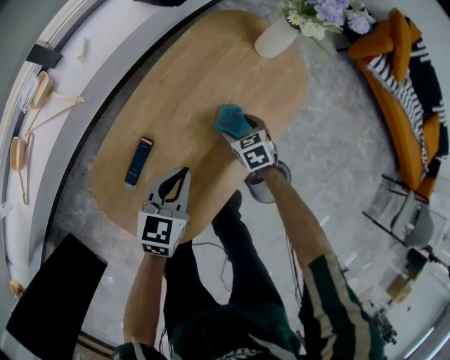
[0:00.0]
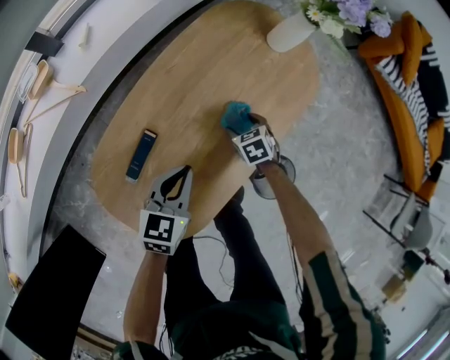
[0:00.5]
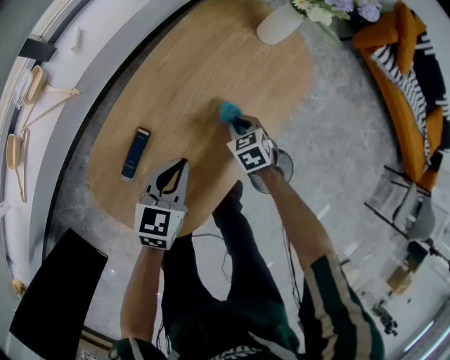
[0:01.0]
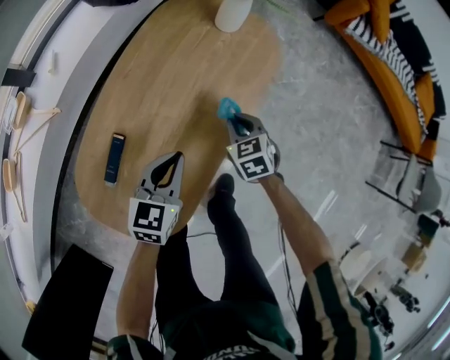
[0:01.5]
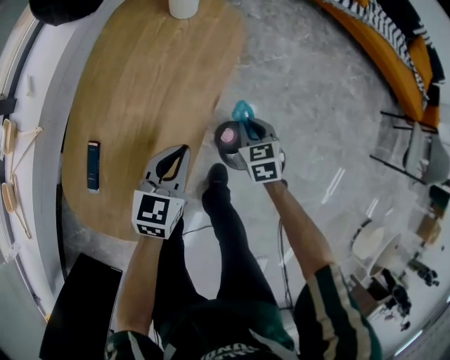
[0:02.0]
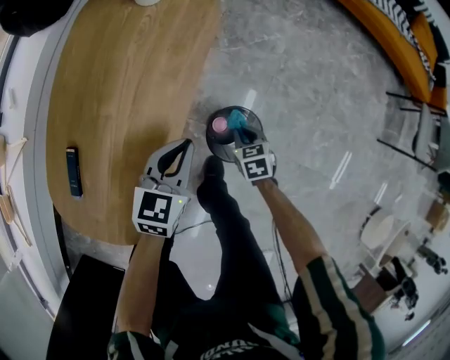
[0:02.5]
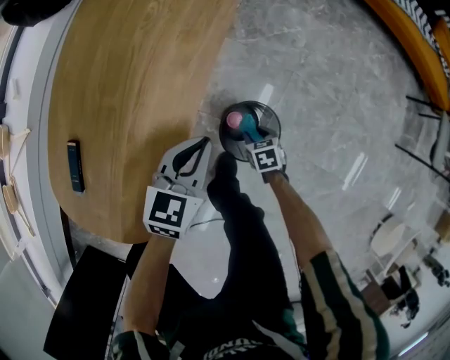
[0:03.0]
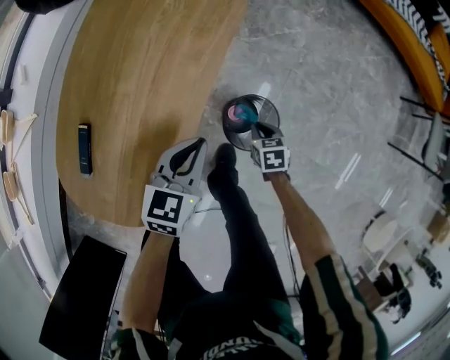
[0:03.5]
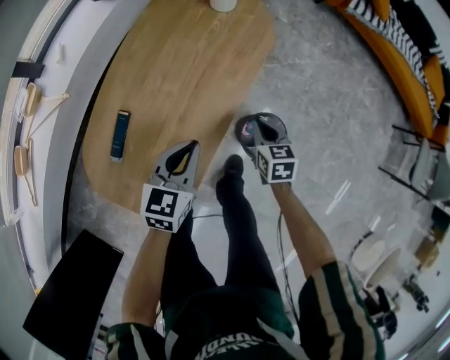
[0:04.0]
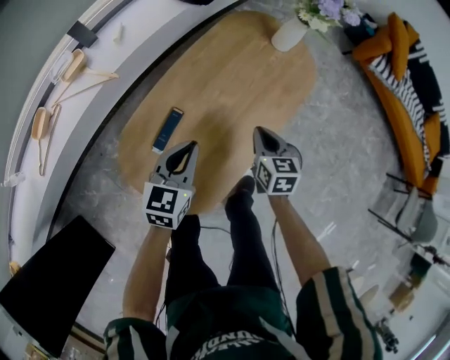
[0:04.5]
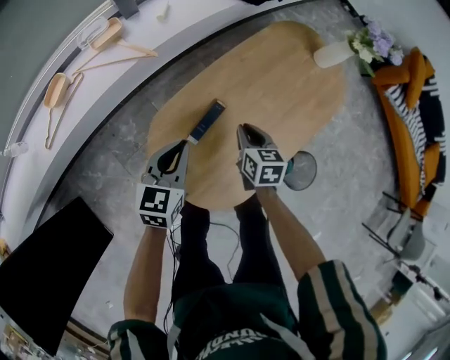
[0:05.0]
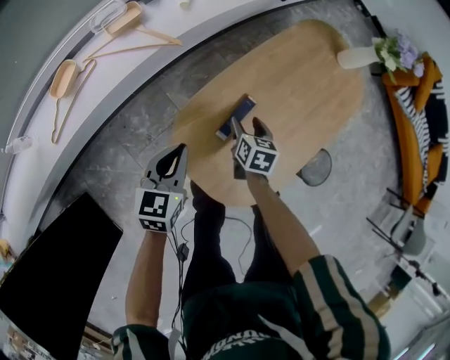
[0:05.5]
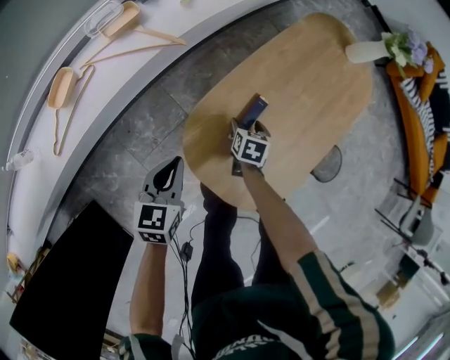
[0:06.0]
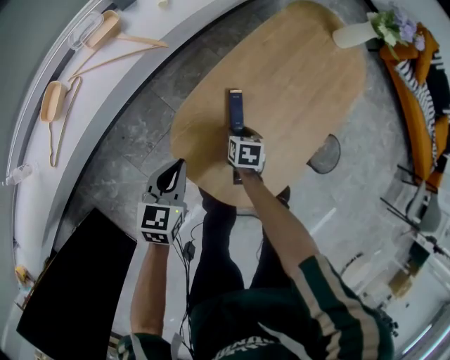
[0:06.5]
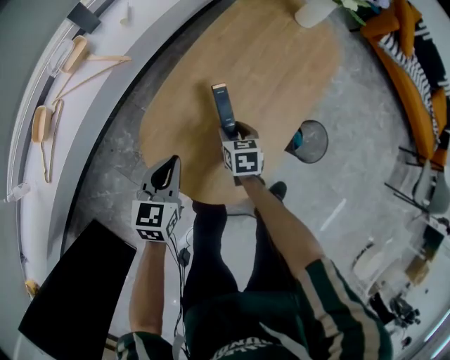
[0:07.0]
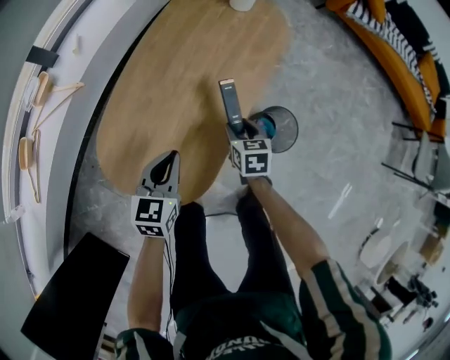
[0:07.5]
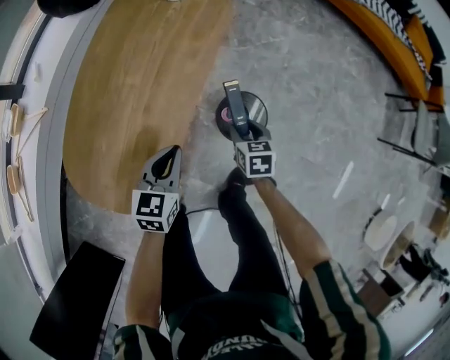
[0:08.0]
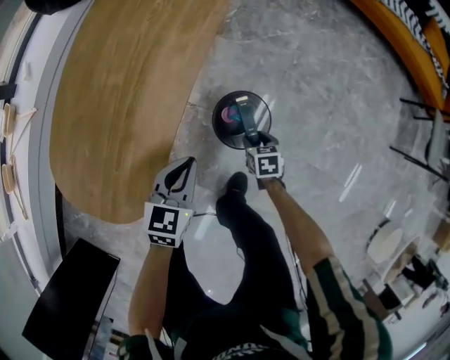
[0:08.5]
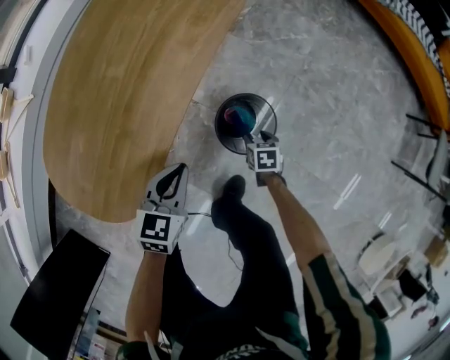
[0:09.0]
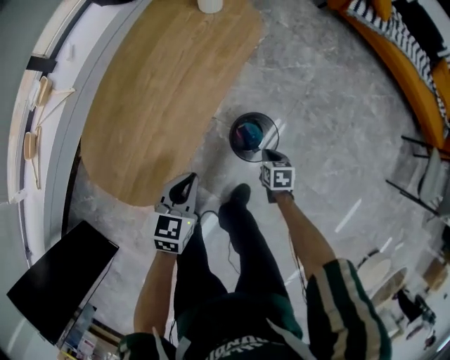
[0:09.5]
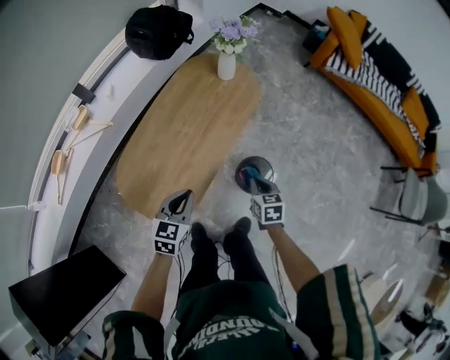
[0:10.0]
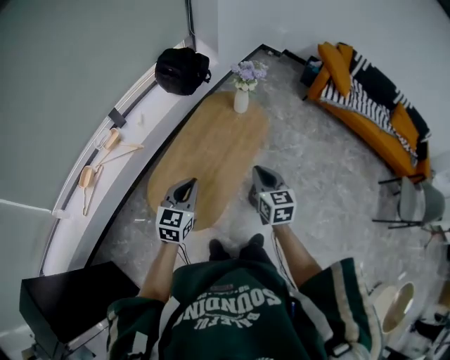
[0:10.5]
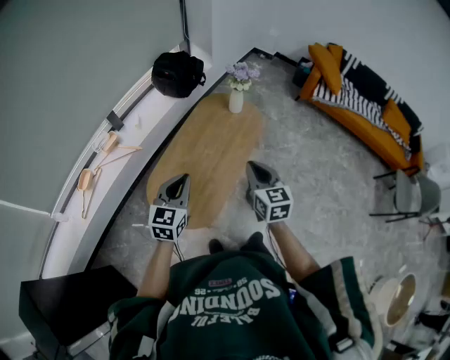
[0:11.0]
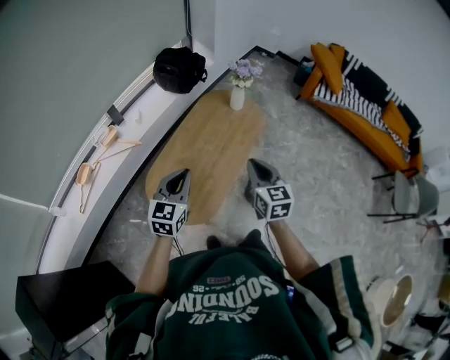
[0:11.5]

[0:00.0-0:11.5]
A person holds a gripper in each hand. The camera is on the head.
0:00.0 to 0:02.0: The left gripper heads to the right, covering about 20 cm, while the right gripper is displaced to the right and backward by approximately 25 cm, changes its angle by some 30 degrees, and closes its fingers.
0:02.0 to 0:04.0: The grippers both shift backward by approximately 5 cm. The left gripper goes to the right and returns, some 10 cm each way, while the right gripper travels downward and back again, roughly 25 cm each way.
0:04.0 to 0:06.0: The two grippers travel together, to the left, approximately 50 cm. The right gripper opens its fingers. The left gripper changes its angle by some 20 degrees.
0:06.0 to 0:07.5: Both grippers move to the right, roughly 35 cm. The right gripper closes its fingers.
0:07.5 to 0:09.5: The two grippers go about 25 cm to the right. The right gripper closes up.
0:09.5 to 0:11.5: Both grippers move upward and to the left, roughly 50 cm. The right gripper points its fingers roughly 50 degrees further upward; the left gripper swivels approximately 30 degrees.

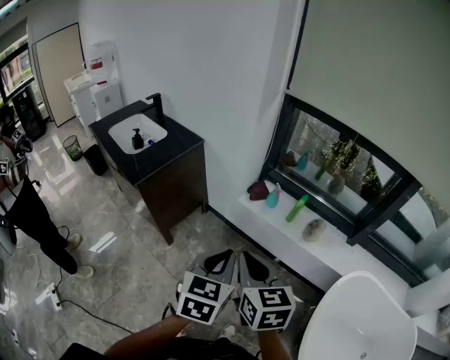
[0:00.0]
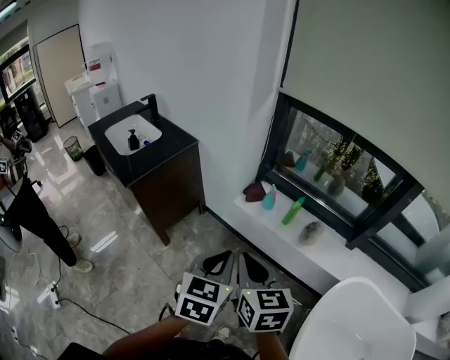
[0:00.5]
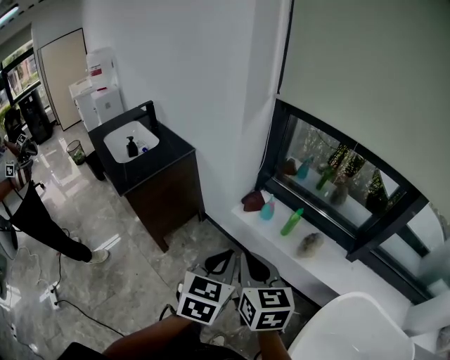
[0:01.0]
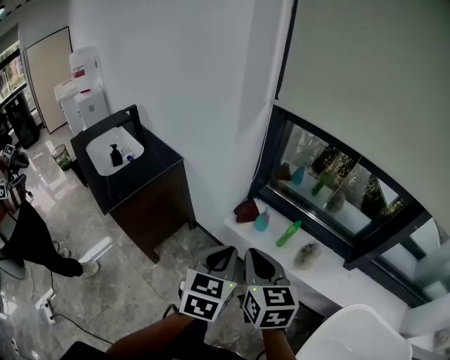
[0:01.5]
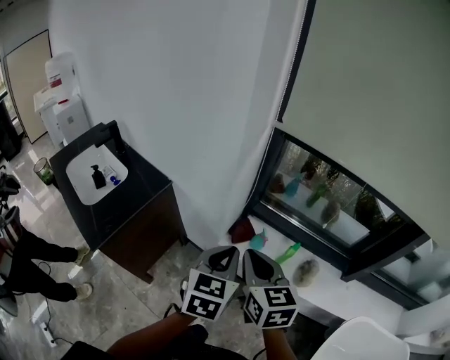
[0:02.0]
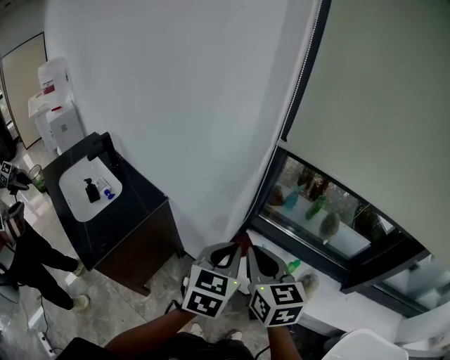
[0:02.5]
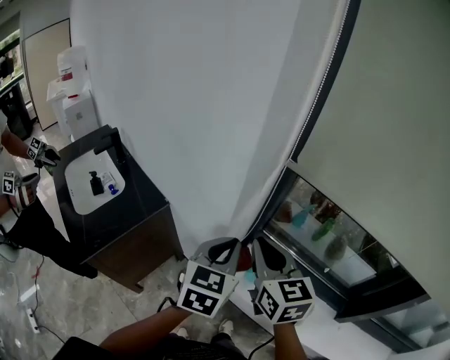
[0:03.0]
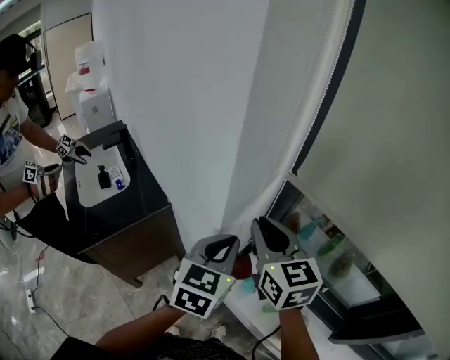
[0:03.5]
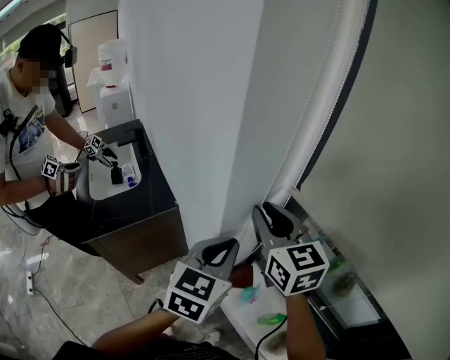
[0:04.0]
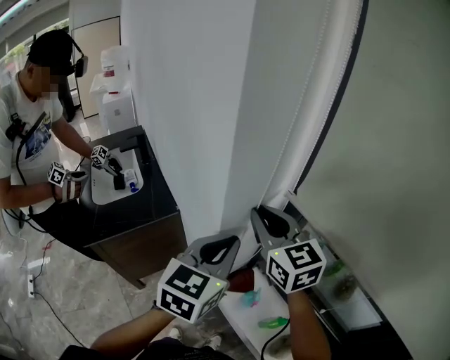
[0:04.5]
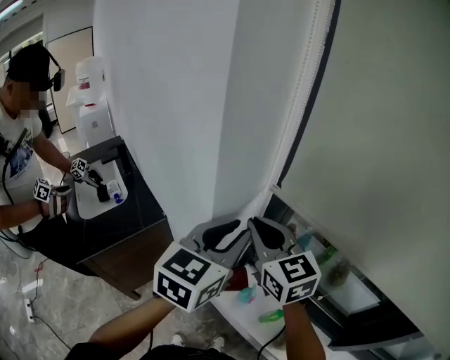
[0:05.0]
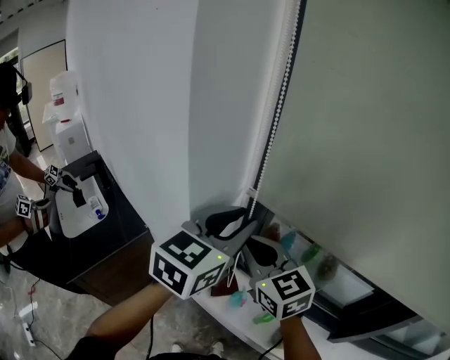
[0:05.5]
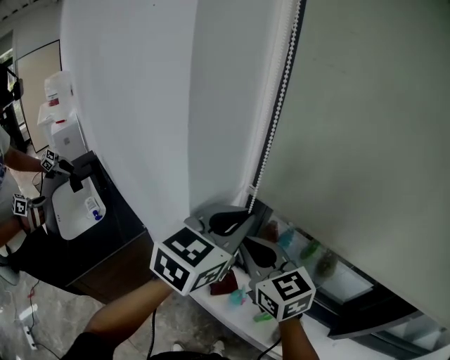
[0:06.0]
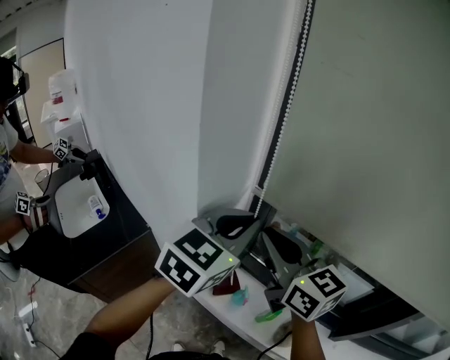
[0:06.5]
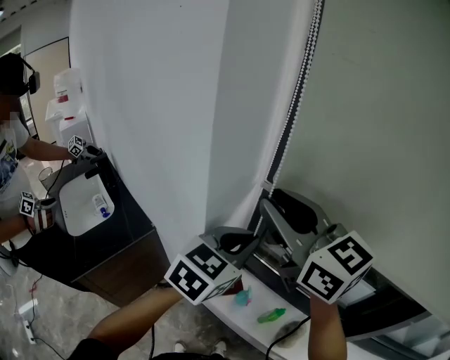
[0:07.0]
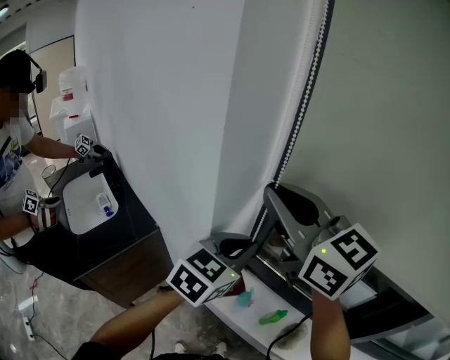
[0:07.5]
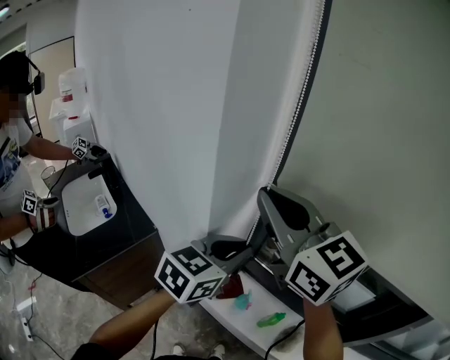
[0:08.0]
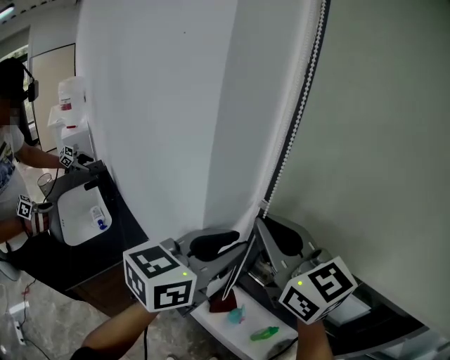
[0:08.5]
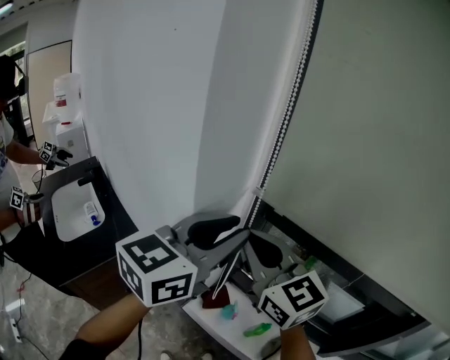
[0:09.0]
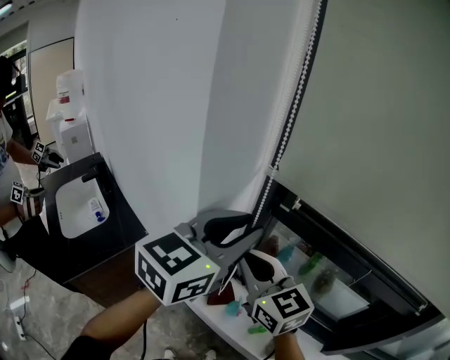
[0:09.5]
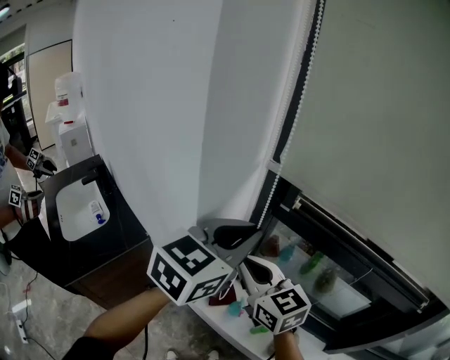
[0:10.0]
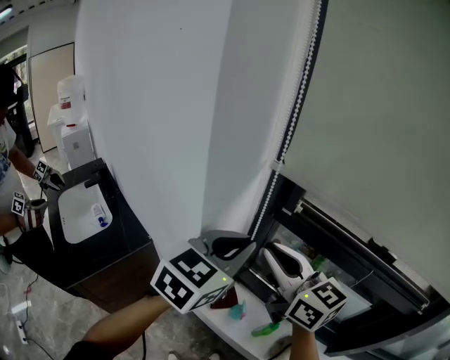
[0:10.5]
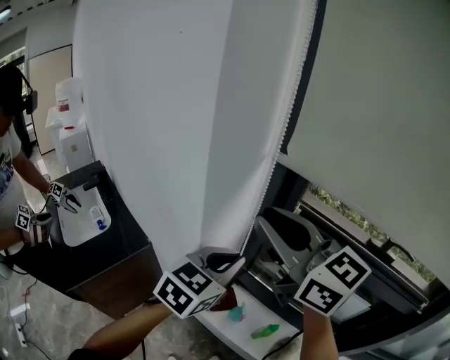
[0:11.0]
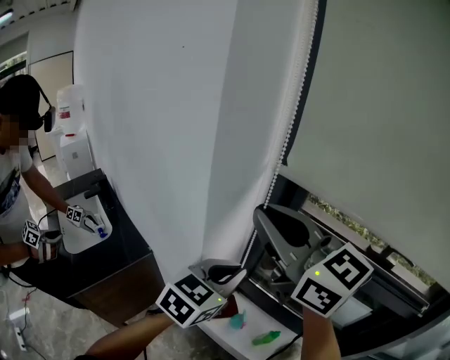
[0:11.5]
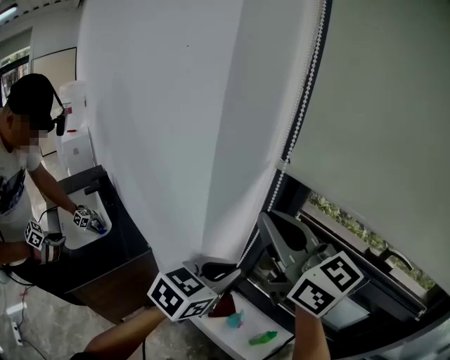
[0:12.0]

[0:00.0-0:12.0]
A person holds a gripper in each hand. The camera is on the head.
0:00.0 to 0:02.0: Both grippers travel together forward, some 30 cm.
0:02.0 to 0:04.0: Both grippers move forward, some 25 cm. The right gripper swivels about 30 degrees.
0:04.0 to 0:06.0: The right gripper shifts some 5 cm backward. The left gripper heads upward and to the right, covering roughly 15 cm, rotates some 30 degrees, and opens and closes again.
0:06.0 to 0:08.0: The right gripper travels upward by approximately 15 cm. Meanwhile the left gripper moves downward, approximately 5 cm.
0:08.0 to 0:10.0: The right gripper travels downward by some 20 cm. Meanwhile the left gripper travels upward by roughly 10 cm, and opens, then closes again.
0:10.0 to 0:12.0: The left gripper travels downward by about 10 cm. The right gripper shifts approximately 20 cm upward, and turns by some 20 degrees.

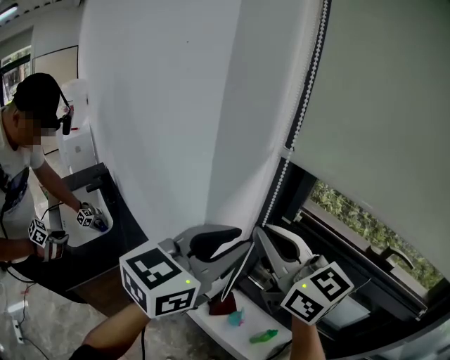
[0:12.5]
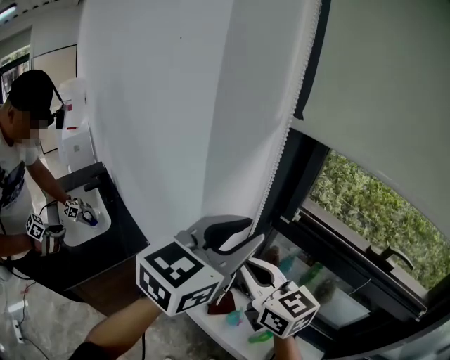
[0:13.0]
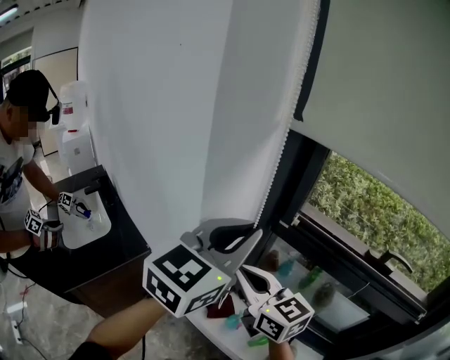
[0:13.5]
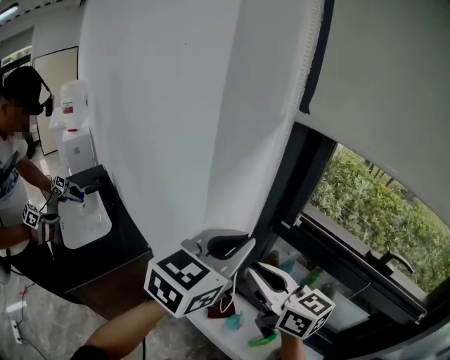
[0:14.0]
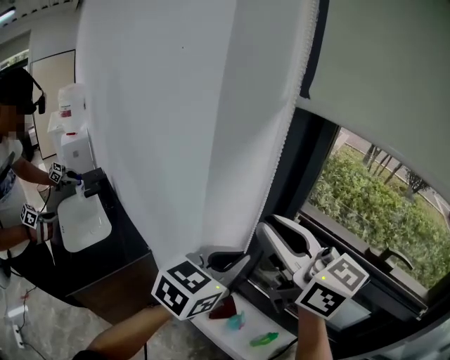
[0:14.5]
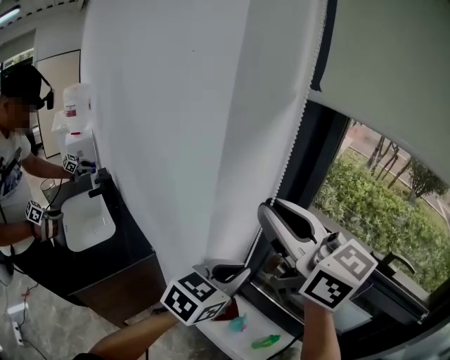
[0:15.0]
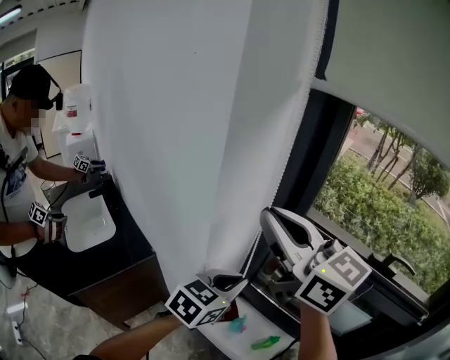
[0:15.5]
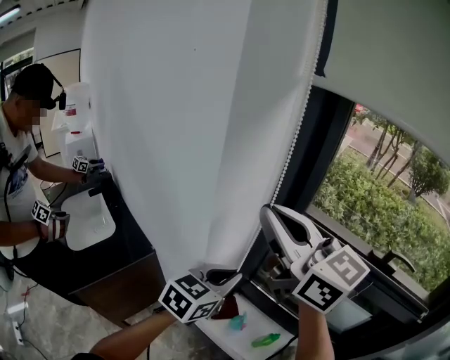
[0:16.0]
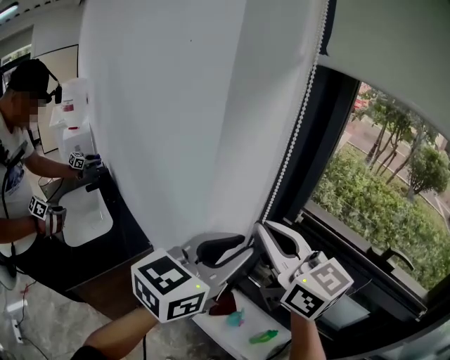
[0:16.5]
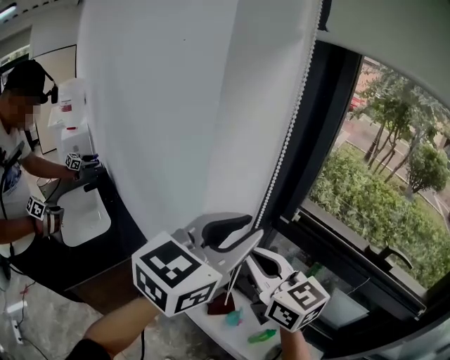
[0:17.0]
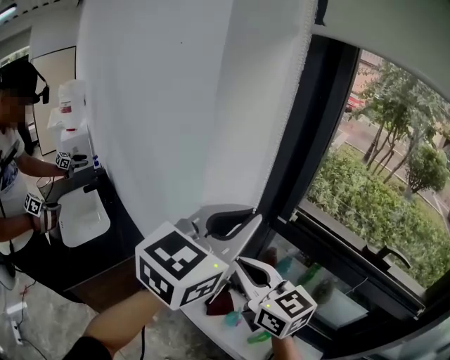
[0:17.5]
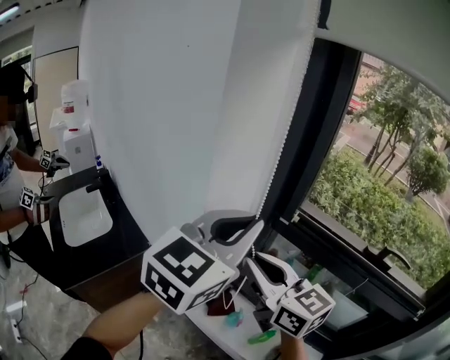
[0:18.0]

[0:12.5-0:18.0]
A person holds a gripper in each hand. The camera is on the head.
0:12.5 to 0:14.5: The right gripper travels downward and back again, approximately 15 cm each way. Meanwhile the left gripper goes roughly 10 cm downward, and closes up.
0:14.5 to 0:16.0: The left gripper goes roughly 10 cm downward.
0:16.0 to 0:18.0: The right gripper heads downward, covering approximately 15 cm. The left gripper shifts about 20 cm upward, turns by some 20 degrees, and opens and closes again.
